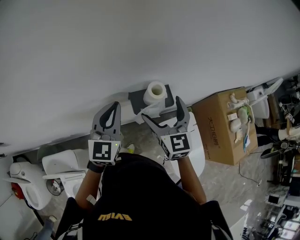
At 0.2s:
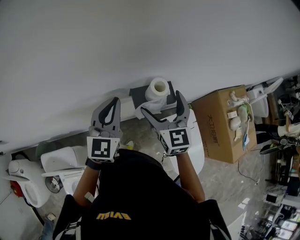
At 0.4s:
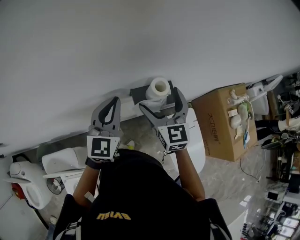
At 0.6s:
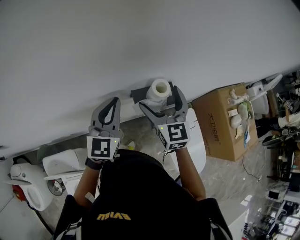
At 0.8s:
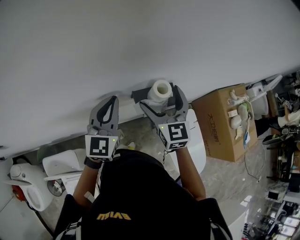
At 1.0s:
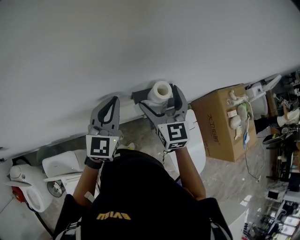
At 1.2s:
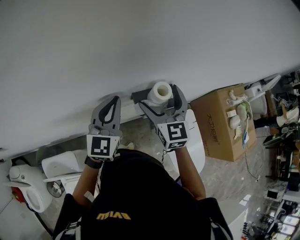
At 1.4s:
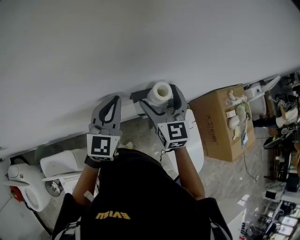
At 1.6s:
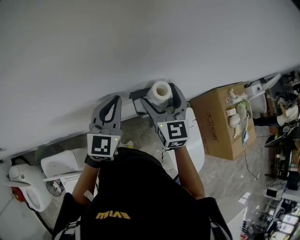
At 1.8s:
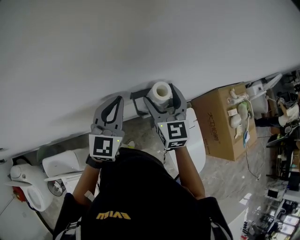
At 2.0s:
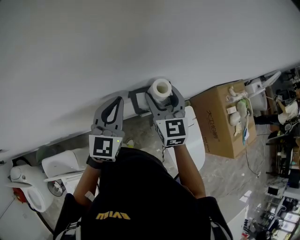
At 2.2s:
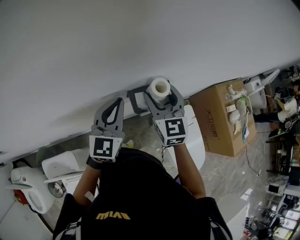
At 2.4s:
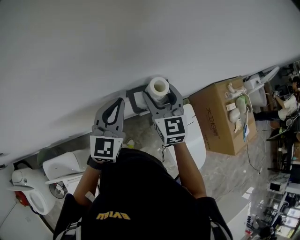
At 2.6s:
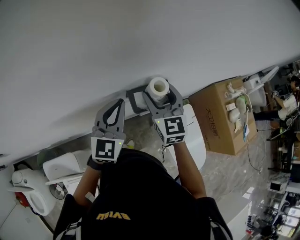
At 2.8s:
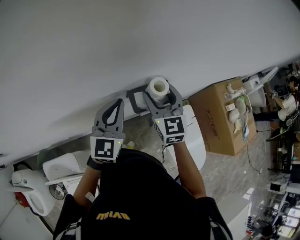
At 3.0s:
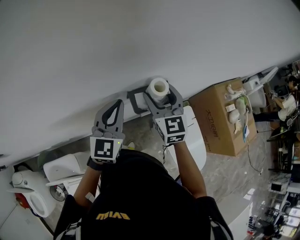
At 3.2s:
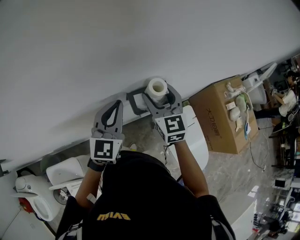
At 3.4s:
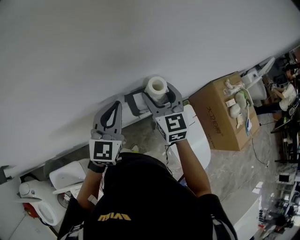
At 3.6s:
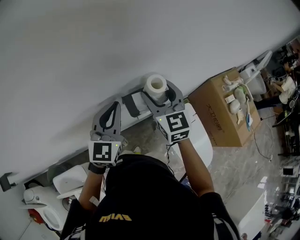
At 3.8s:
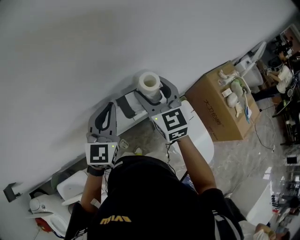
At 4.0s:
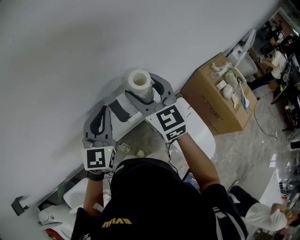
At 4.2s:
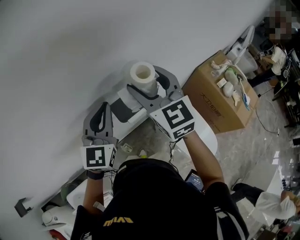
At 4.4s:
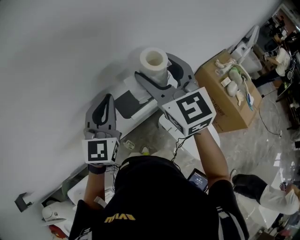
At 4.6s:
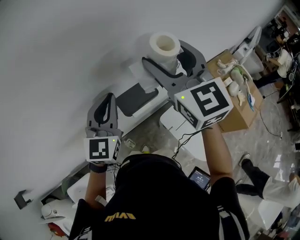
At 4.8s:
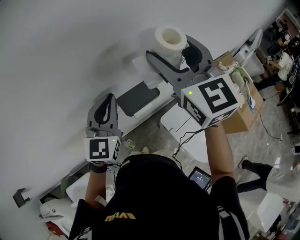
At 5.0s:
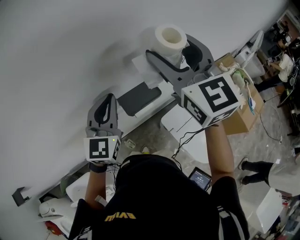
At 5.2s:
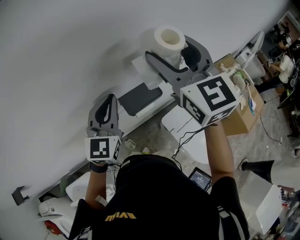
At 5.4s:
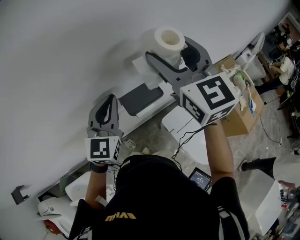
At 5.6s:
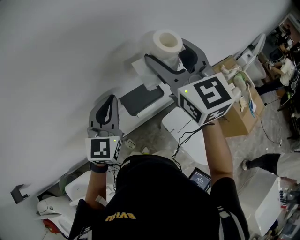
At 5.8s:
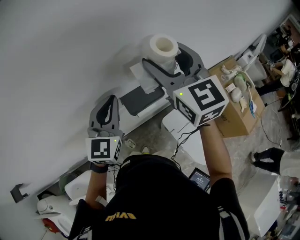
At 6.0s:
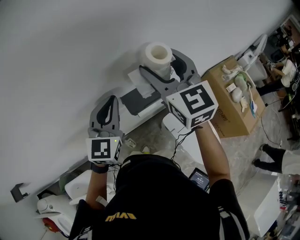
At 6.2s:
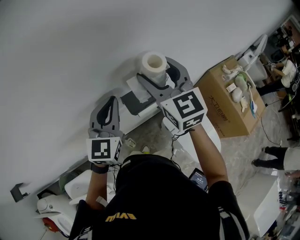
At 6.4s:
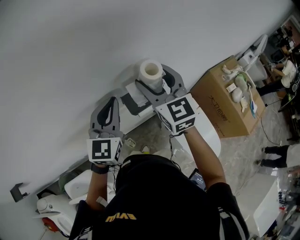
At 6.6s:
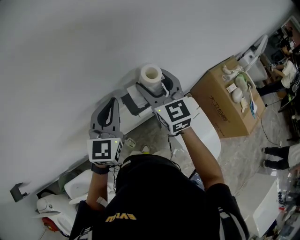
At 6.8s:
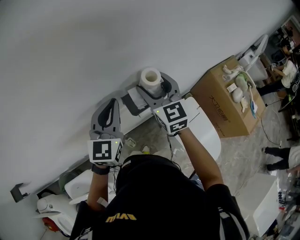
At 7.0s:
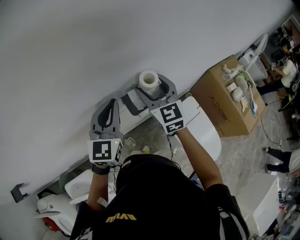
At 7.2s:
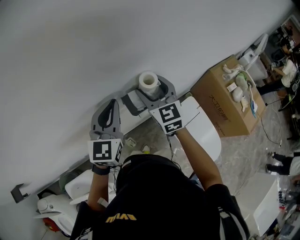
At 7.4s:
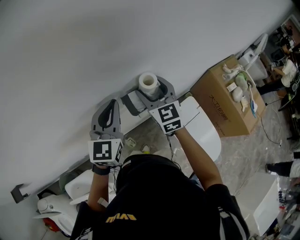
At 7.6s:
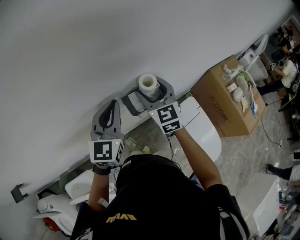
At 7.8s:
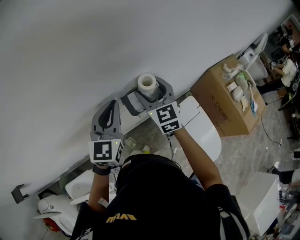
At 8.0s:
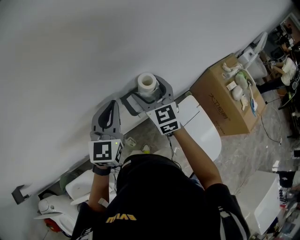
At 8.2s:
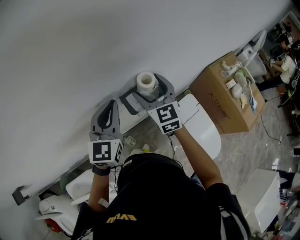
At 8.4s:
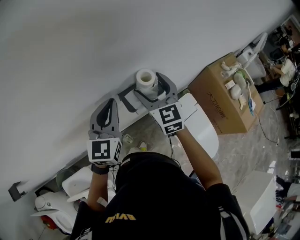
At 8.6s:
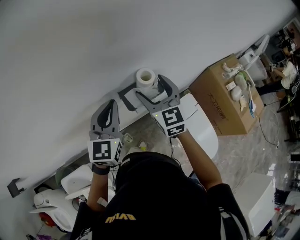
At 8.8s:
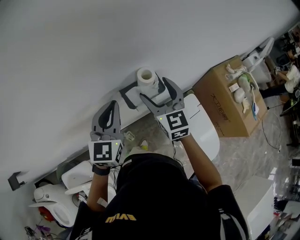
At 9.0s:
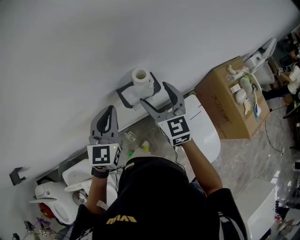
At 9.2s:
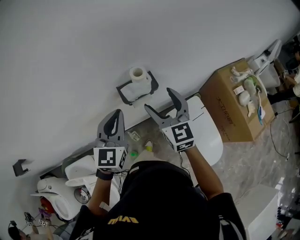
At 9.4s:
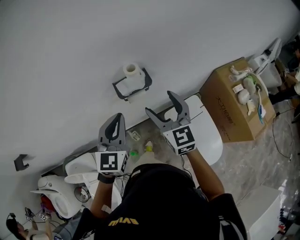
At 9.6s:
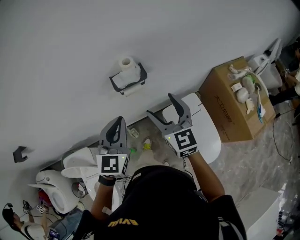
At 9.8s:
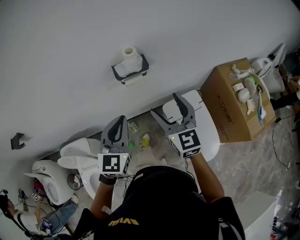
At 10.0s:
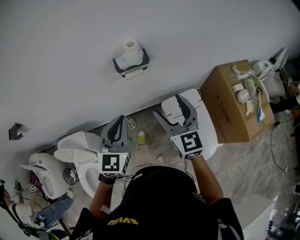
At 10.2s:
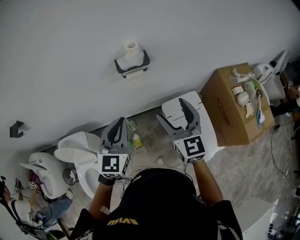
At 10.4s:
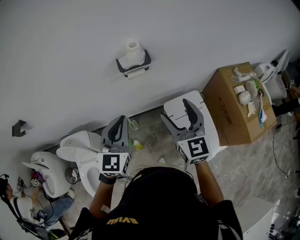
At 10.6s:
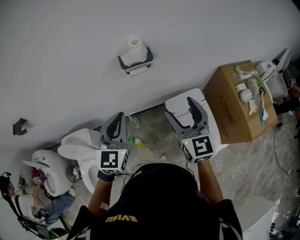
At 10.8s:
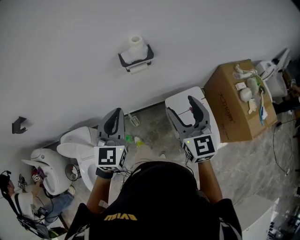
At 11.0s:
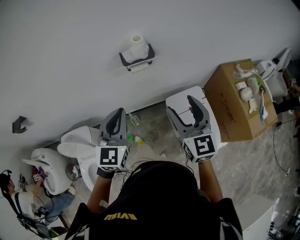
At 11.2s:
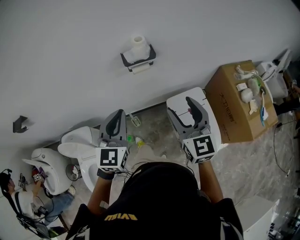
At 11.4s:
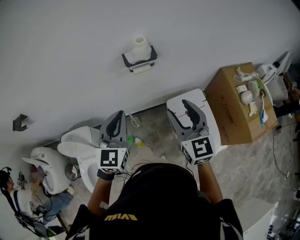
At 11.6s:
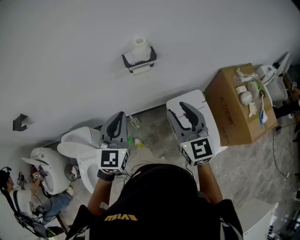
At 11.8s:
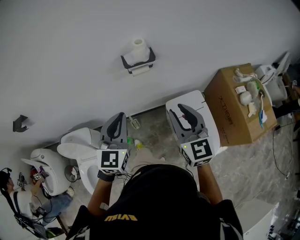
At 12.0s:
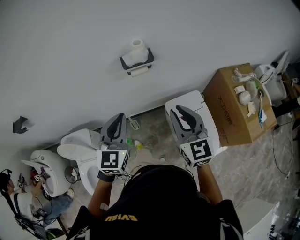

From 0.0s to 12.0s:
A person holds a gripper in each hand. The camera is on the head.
From 0.0s to 1.6s: The right gripper moves some 5 cm.
From 1.6s to 3.0s: The grippers make only small movements.
From 3.0s to 4.4s: The right gripper travels upward by some 15 cm. Meanwhile the left gripper is displaced upward by some 10 cm.
From 6.0s to 7.6s: The right gripper goes some 15 cm downward.
From 7.6s to 9.0s: The two grippers go roughly 5 cm backward.
From 9.0s to 10.4s: Both grippers travel together backward, approximately 25 cm.
From 10.4s to 12.0s: The right gripper closes up.

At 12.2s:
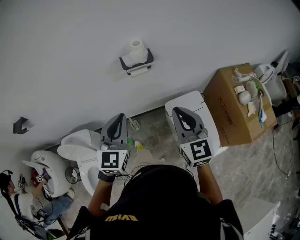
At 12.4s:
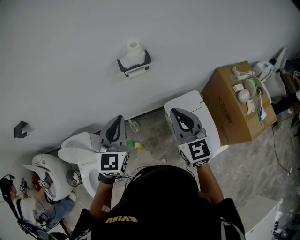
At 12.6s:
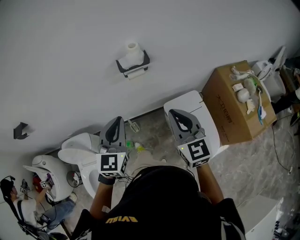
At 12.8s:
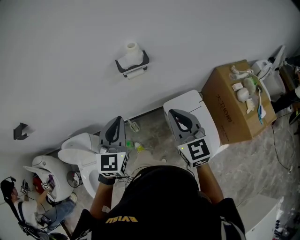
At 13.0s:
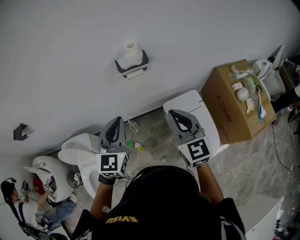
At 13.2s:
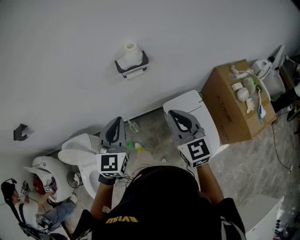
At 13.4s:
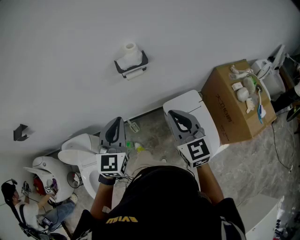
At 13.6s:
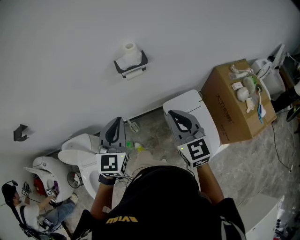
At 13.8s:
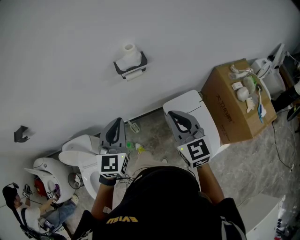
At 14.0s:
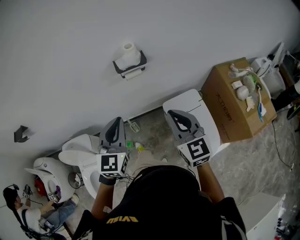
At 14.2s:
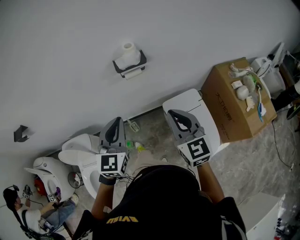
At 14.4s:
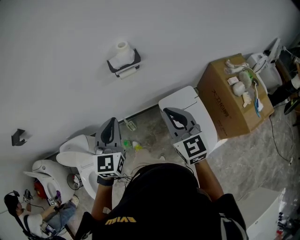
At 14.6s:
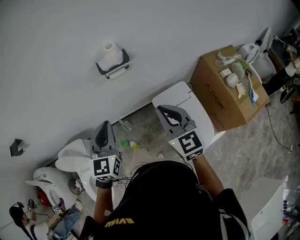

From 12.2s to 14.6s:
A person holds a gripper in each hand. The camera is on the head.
From 12.2s to 13.4s: The two grippers keep their place.
From 13.4s to 14.6s: There are only small adjustments of the grippers.

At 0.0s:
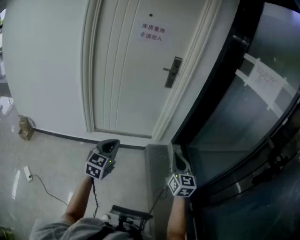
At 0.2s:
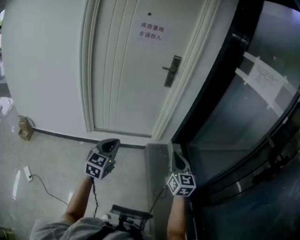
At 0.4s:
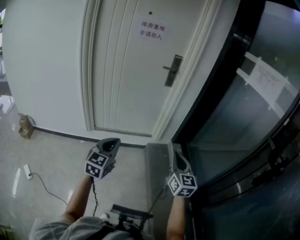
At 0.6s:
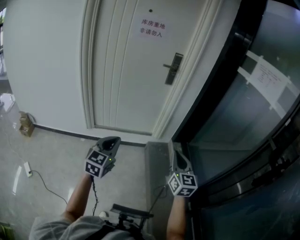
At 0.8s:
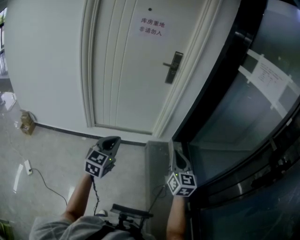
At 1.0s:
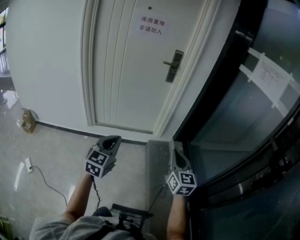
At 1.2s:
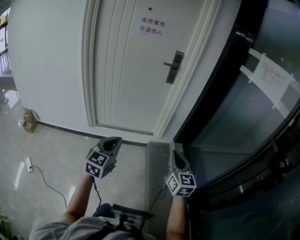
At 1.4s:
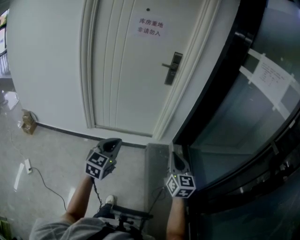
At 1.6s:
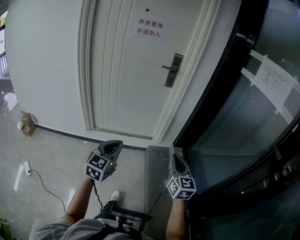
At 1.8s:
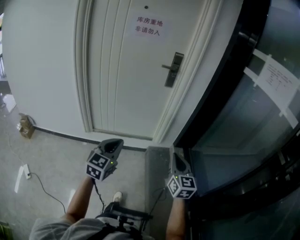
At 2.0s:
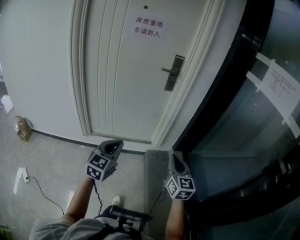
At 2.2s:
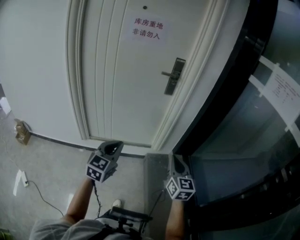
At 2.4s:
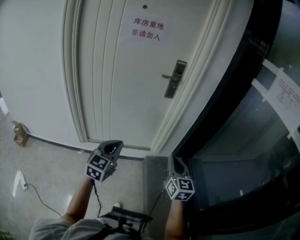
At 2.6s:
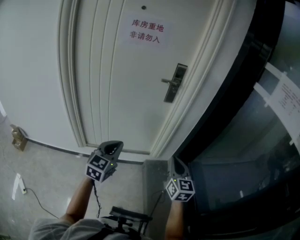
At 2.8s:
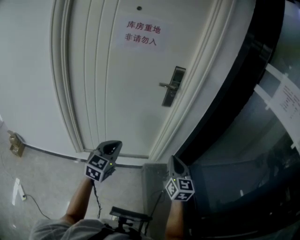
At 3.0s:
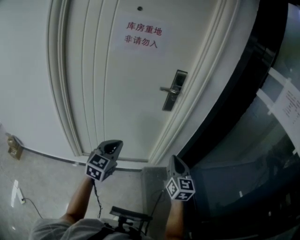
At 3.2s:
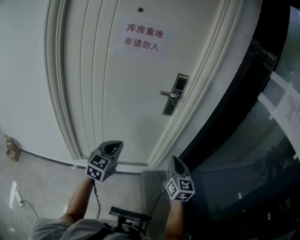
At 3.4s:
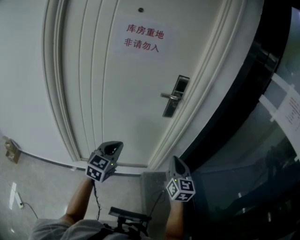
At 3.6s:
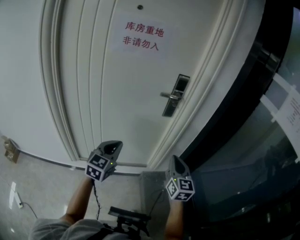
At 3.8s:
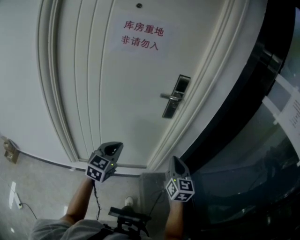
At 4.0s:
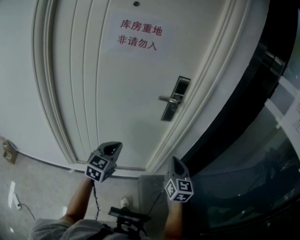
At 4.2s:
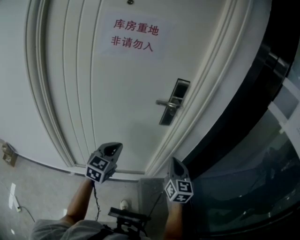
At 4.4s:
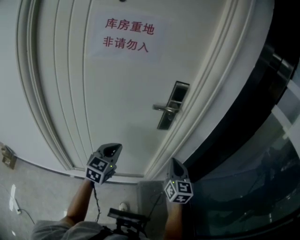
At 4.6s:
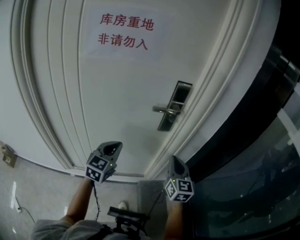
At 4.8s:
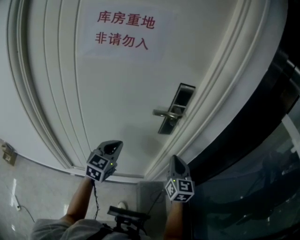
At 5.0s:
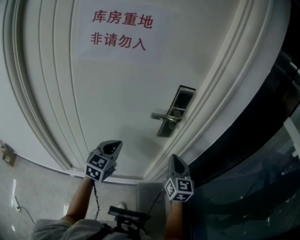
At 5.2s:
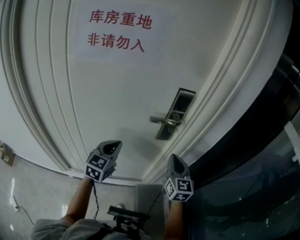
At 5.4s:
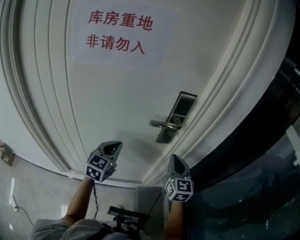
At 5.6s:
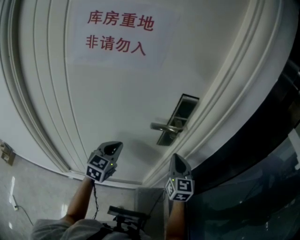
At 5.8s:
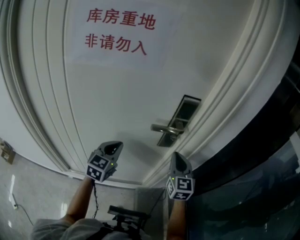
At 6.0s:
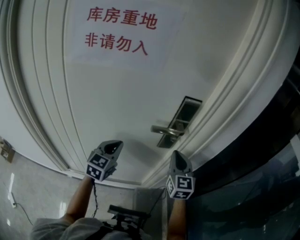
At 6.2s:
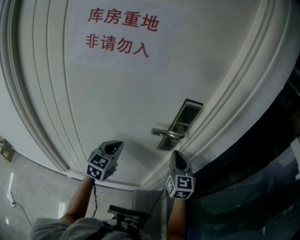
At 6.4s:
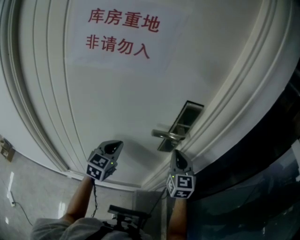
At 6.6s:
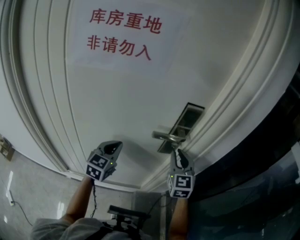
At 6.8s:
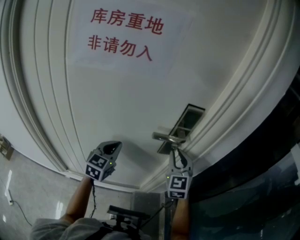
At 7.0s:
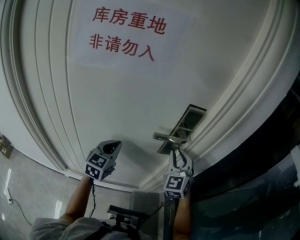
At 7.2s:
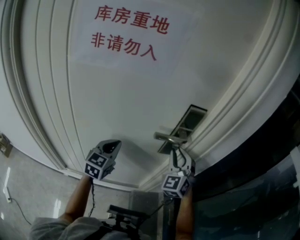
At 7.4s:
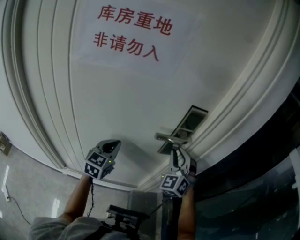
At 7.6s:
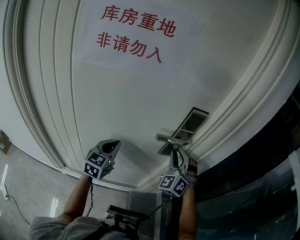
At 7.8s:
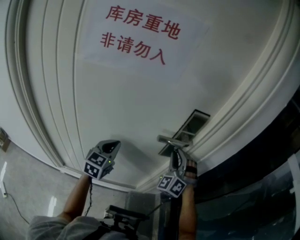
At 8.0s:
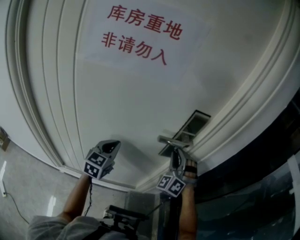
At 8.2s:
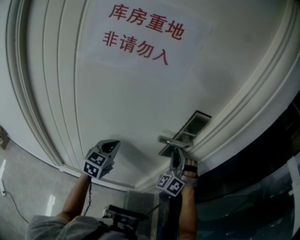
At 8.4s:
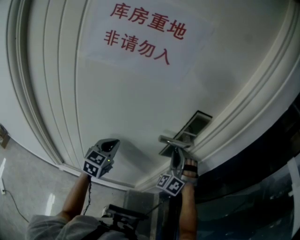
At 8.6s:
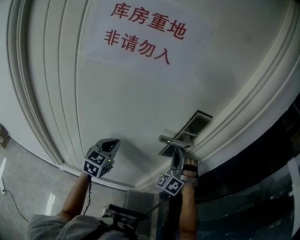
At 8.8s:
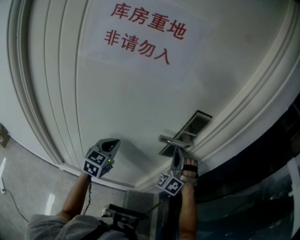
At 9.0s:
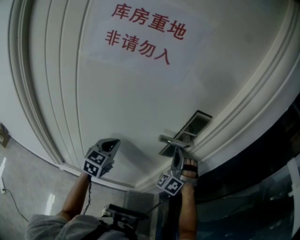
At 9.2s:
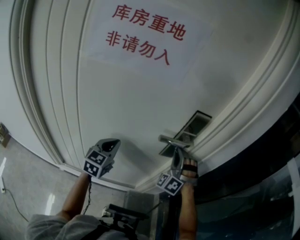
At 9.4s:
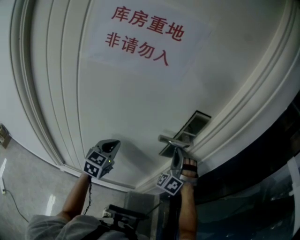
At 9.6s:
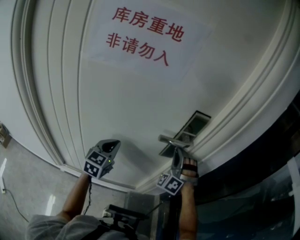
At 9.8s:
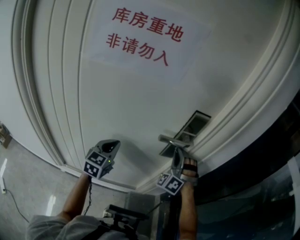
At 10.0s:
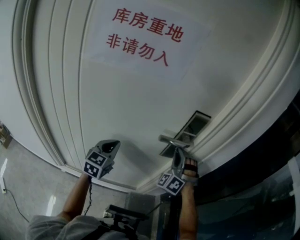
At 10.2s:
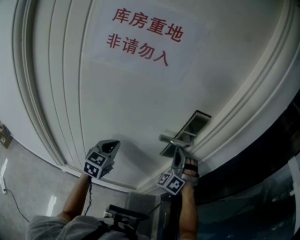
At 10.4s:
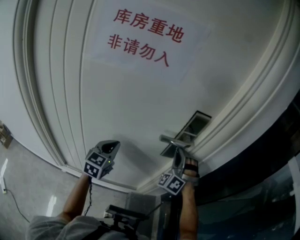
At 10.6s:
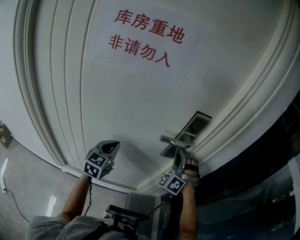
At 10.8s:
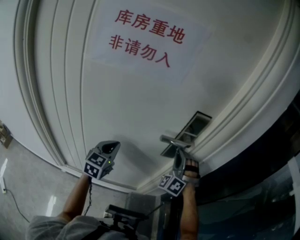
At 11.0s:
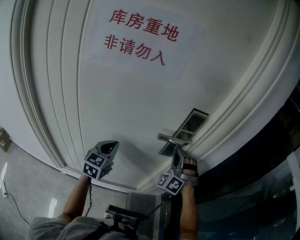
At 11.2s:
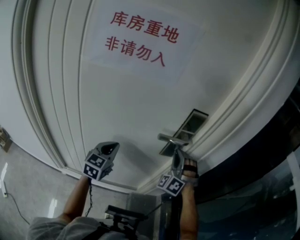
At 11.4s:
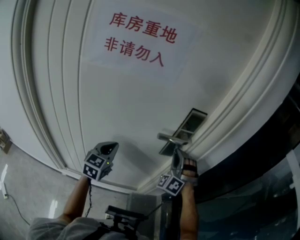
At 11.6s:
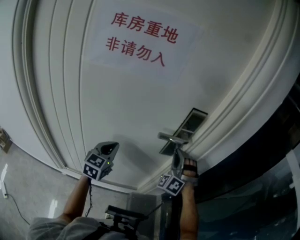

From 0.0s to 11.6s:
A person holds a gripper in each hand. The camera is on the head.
From 0.0s to 1.4s: Both grippers move to the right, approximately 5 cm.
From 1.4s to 2.8s: The two grippers go some 30 cm forward.
From 2.8s to 4.4s: Both grippers move forward, some 25 cm.
From 4.4s to 5.8s: Both grippers move forward, about 15 cm.
From 5.8s to 7.2s: The right gripper moves roughly 5 cm, and turns by approximately 40 degrees.
From 7.2s to 8.8s: The right gripper rotates around the line of its fingers by roughly 40 degrees, counterclockwise from behind.
From 8.8s to 10.2s: Both grippers stay put.
From 10.2s to 11.6s: There are only small adjustments of the grippers.
